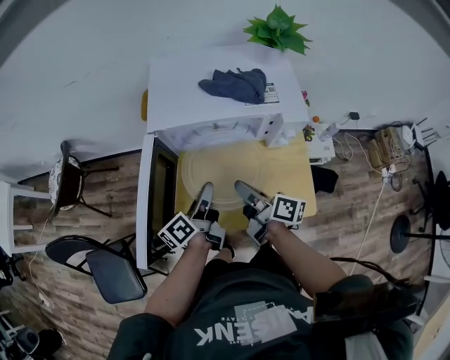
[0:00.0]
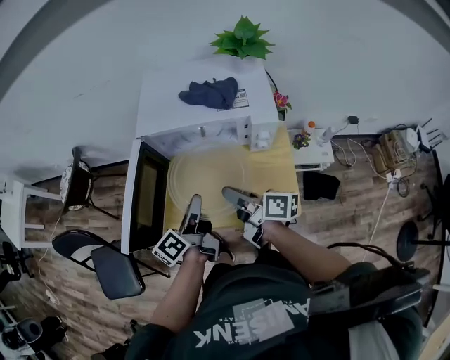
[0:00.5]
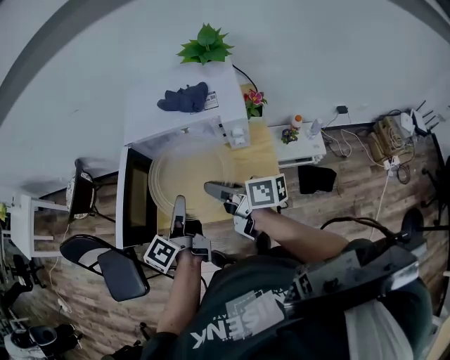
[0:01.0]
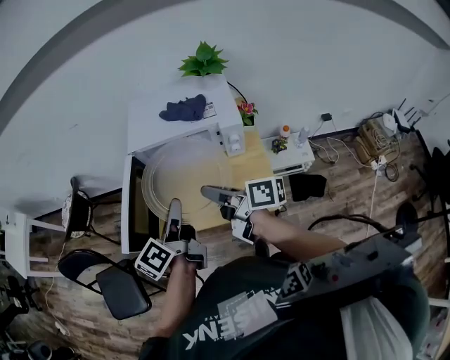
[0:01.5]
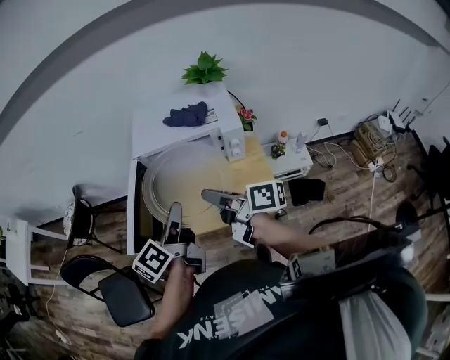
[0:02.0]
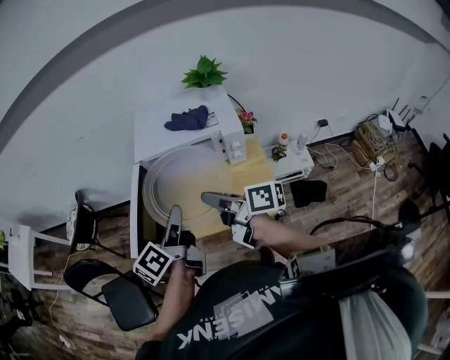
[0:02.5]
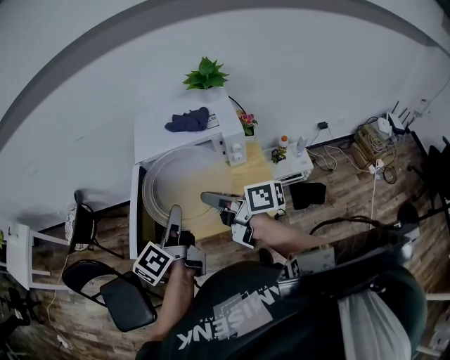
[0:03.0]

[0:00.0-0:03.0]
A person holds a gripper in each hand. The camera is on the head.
0:00.0 to 0:01.5: The grippers both shift upward and backward by some 20 cm.
0:01.5 to 0:03.0: There are only small adjustments of the grippers.

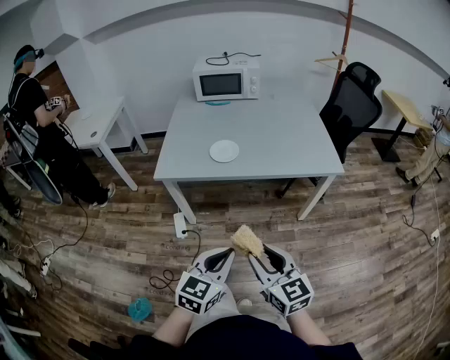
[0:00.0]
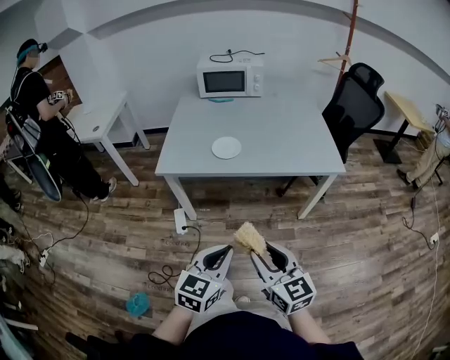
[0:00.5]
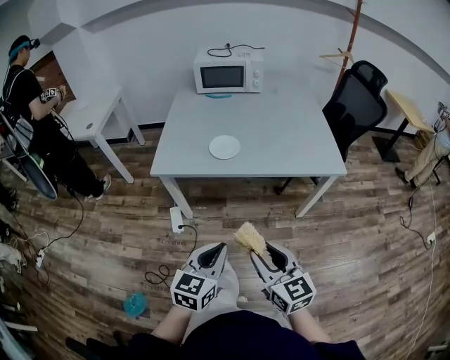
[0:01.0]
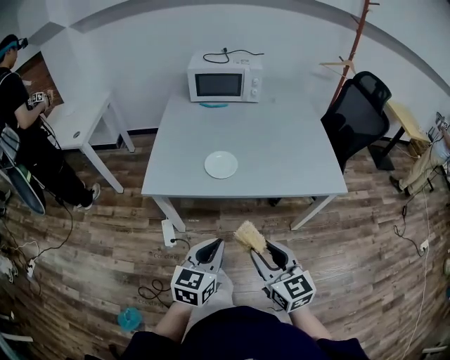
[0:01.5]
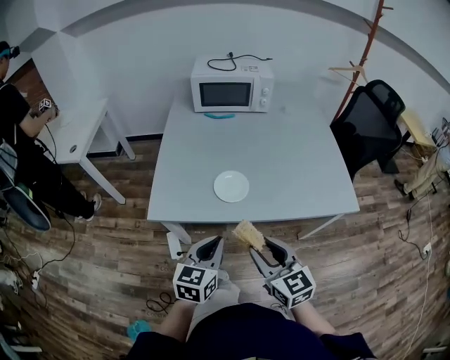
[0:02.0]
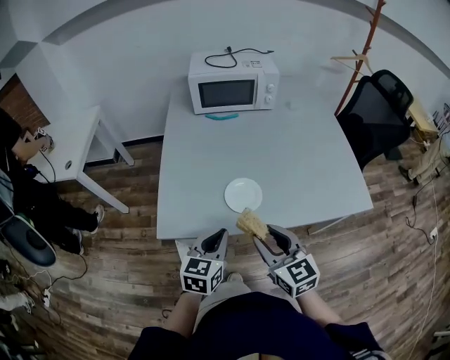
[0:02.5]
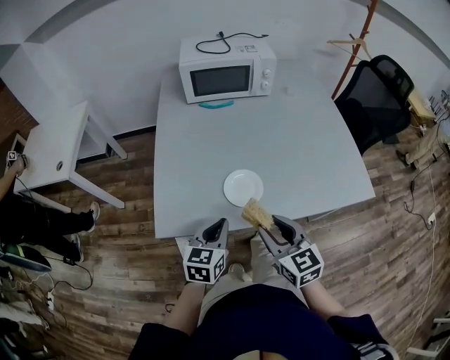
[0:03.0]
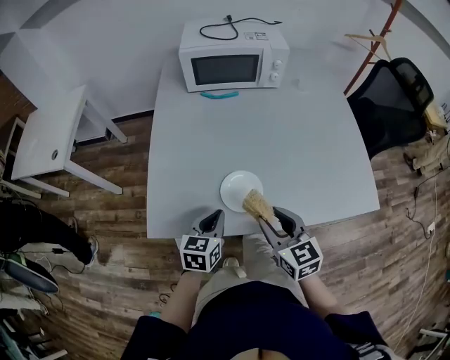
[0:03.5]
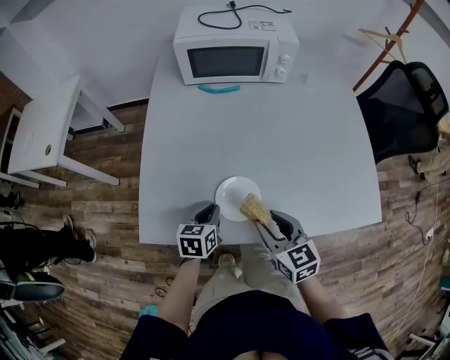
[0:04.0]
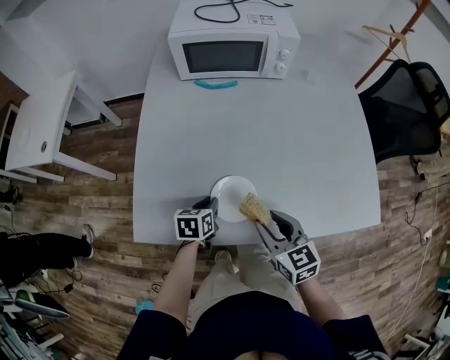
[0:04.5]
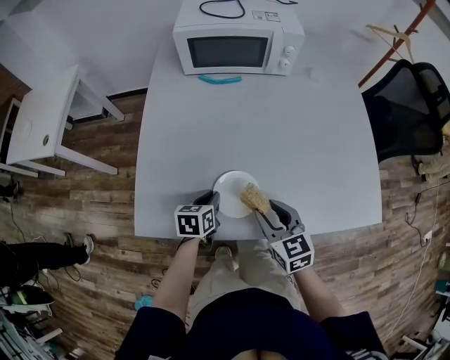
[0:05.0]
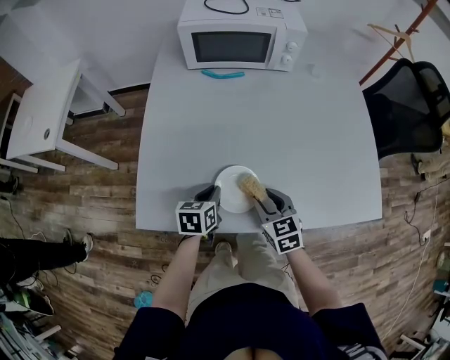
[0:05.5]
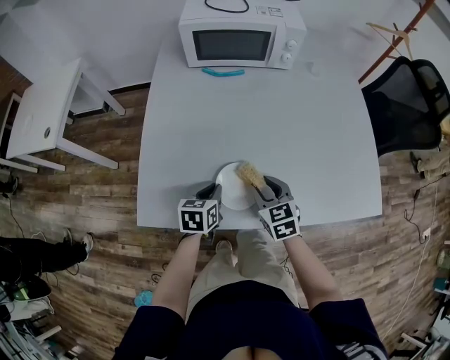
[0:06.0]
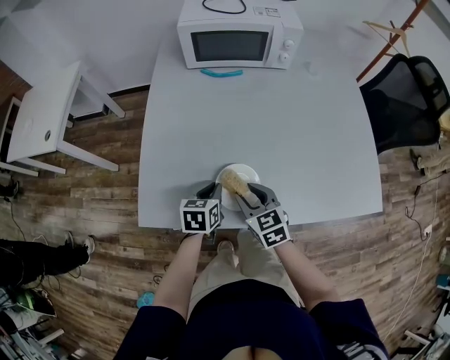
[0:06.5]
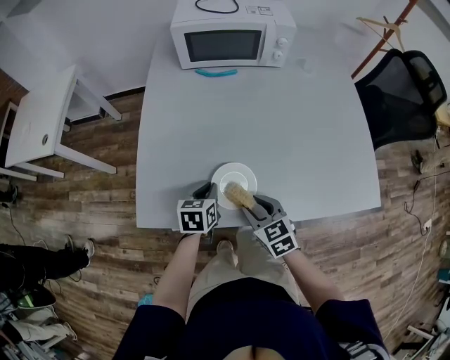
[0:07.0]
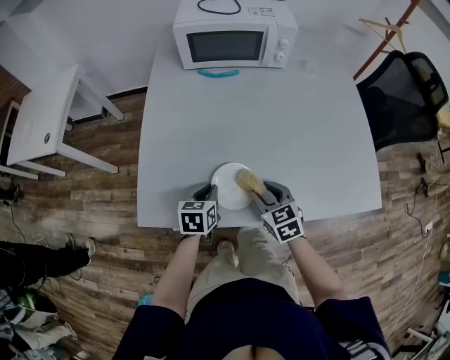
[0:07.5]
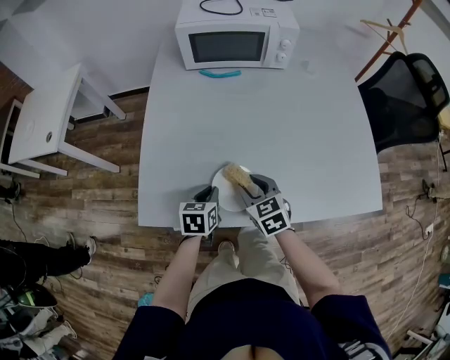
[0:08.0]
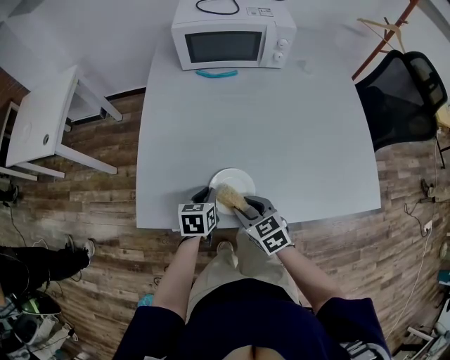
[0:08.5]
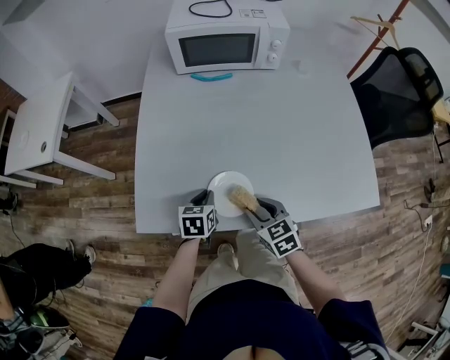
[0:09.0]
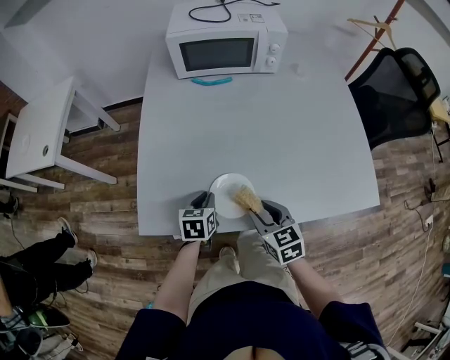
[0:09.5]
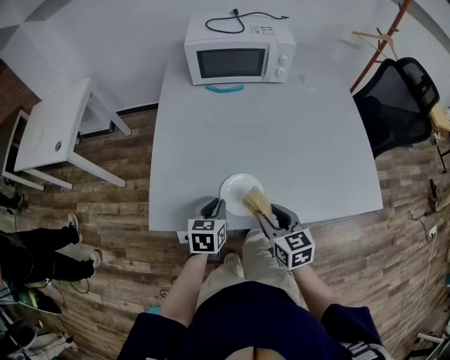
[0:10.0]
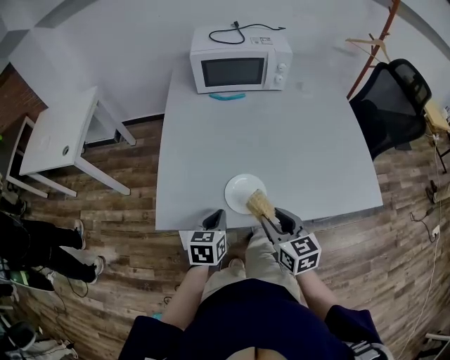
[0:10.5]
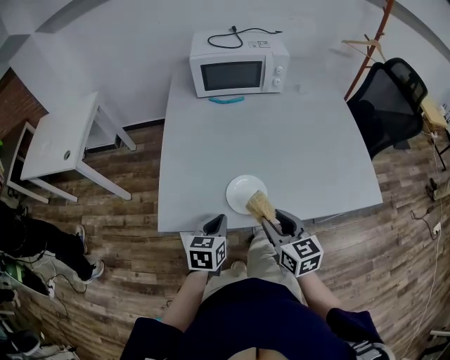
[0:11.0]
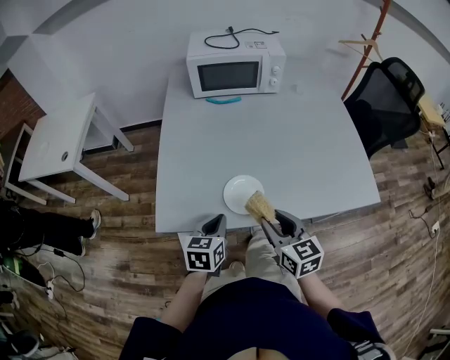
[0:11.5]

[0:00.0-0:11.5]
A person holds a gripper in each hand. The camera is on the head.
0:00.0 to 0:02.0: The grippers both shift forward by roughly 25 cm.
0:02.0 to 0:04.0: The two grippers go approximately 25 cm forward and downward. The left gripper turns by about 20 degrees.
0:04.0 to 0:06.0: The right gripper heads downward and forward, covering approximately 10 cm.
0:07.5 to 0:09.5: The right gripper shifts by some 5 cm.
0:09.5 to 0:11.5: The right gripper is displaced upward and backward by roughly 10 cm; the left gripper shifts some 15 cm backward and upward.

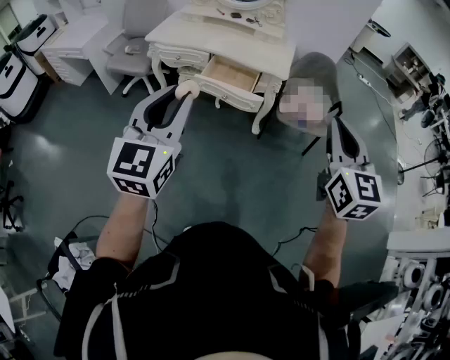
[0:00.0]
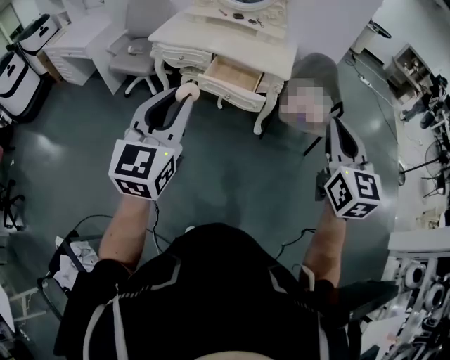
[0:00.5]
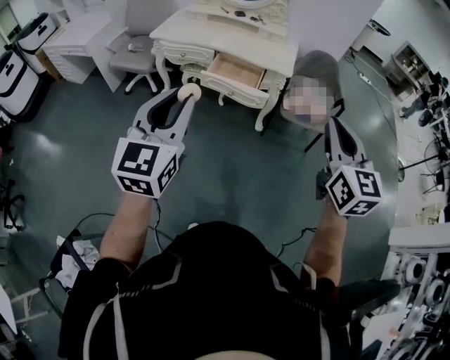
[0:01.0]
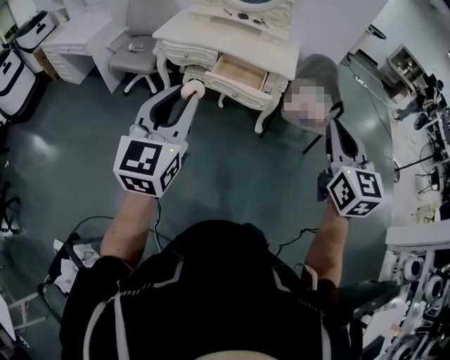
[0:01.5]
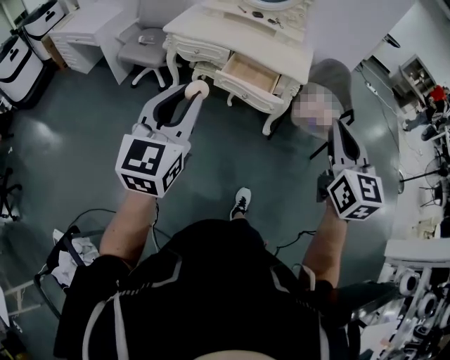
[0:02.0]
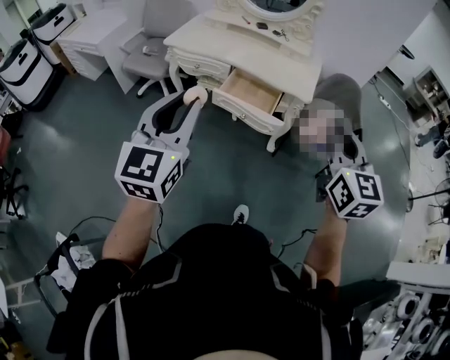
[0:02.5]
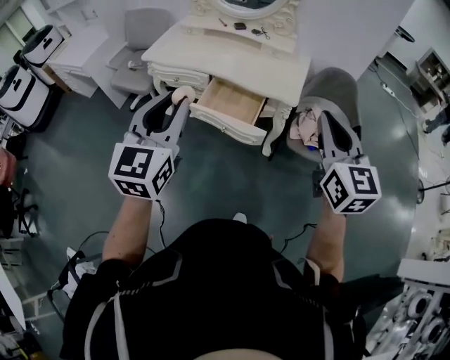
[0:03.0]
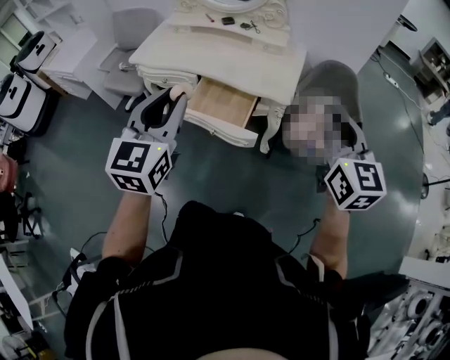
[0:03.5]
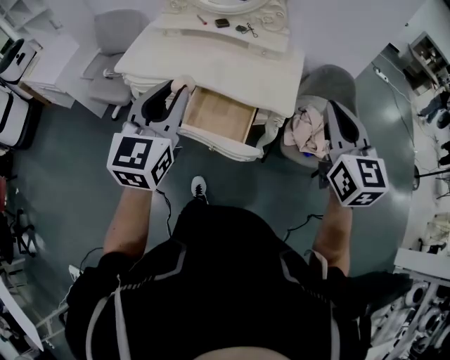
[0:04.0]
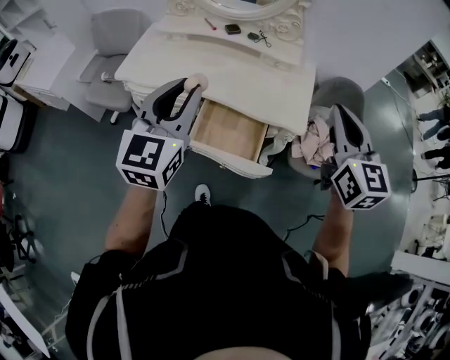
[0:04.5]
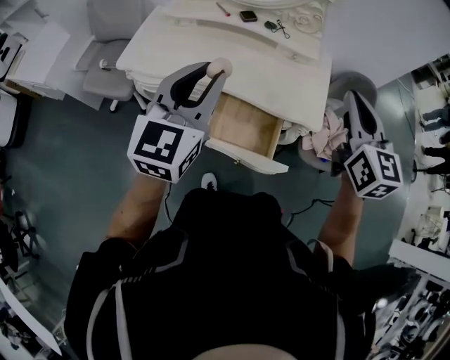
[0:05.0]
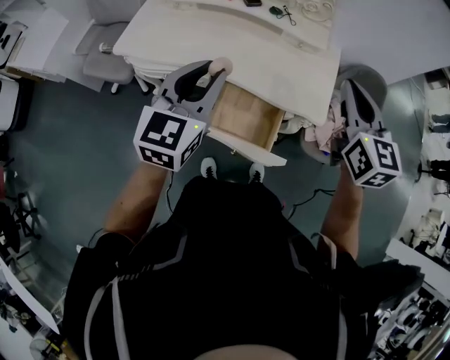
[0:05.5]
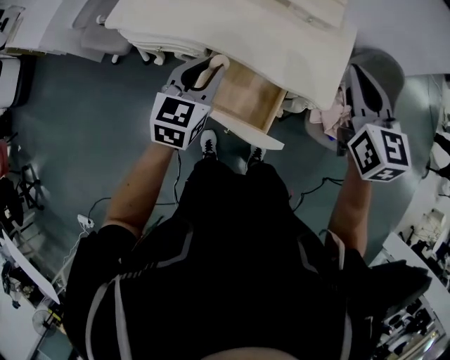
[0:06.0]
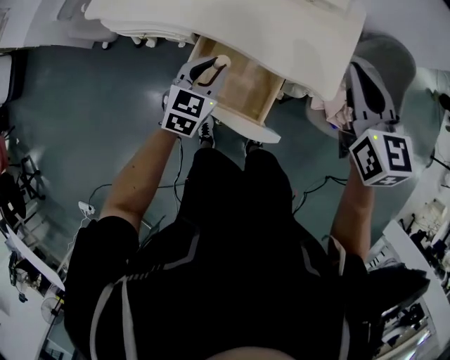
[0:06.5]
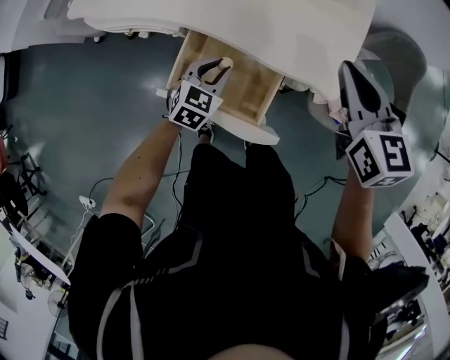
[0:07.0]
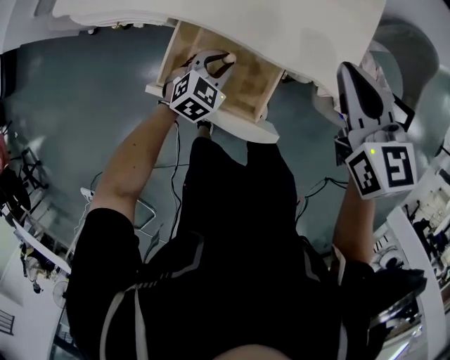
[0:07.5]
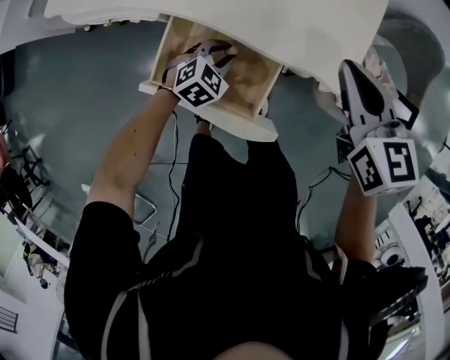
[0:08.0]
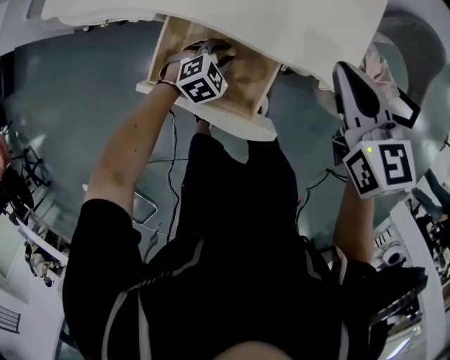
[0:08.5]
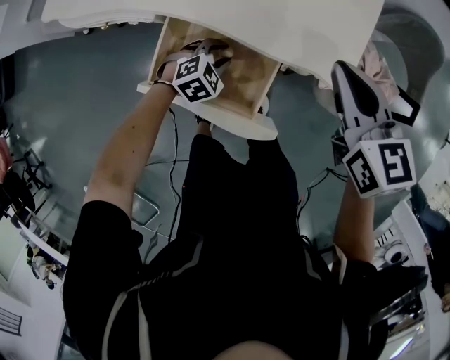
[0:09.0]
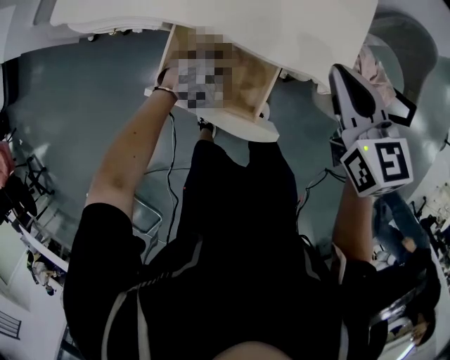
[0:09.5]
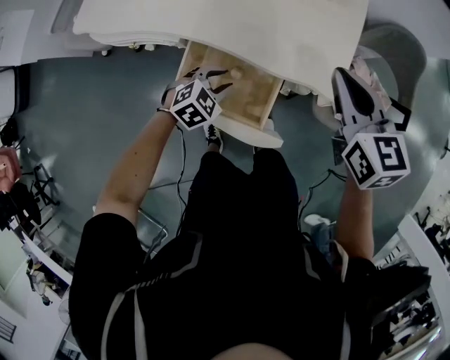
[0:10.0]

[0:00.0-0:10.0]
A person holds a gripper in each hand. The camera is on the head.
0:00.0 to 0:02.0: Both grippers move to the left, about 10 cm.
0:02.0 to 0:04.0: The pair of grippers is taken forward, some 40 cm.
0:04.0 to 0:06.0: The left gripper moves downward and forward, about 30 cm, and changes its angle by some 20 degrees. Meanwhile the right gripper goes some 25 cm forward and downward.
0:06.0 to 0:08.0: The right gripper goes roughly 20 cm downward. Meanwhile the left gripper moves downward, about 30 cm, and tilts its fingers some 30 degrees downward.
0:08.0 to 0:10.0: The two grippers go about 5 cm upward.

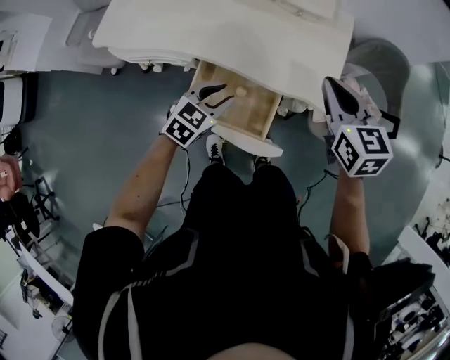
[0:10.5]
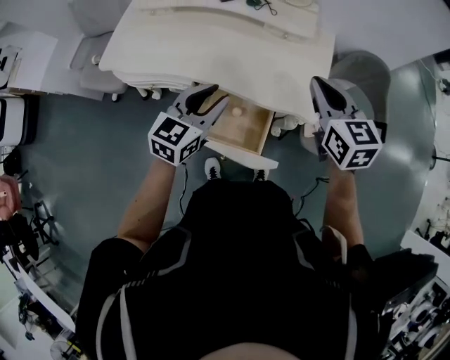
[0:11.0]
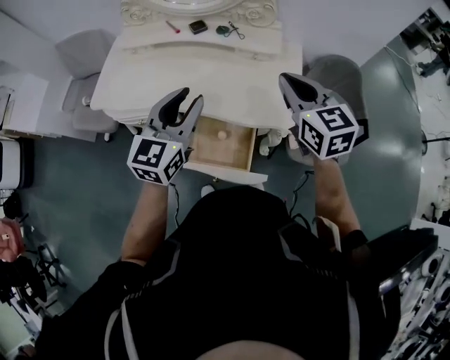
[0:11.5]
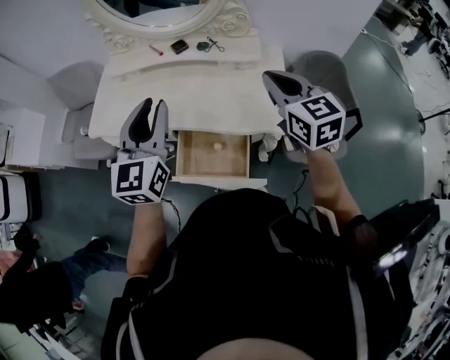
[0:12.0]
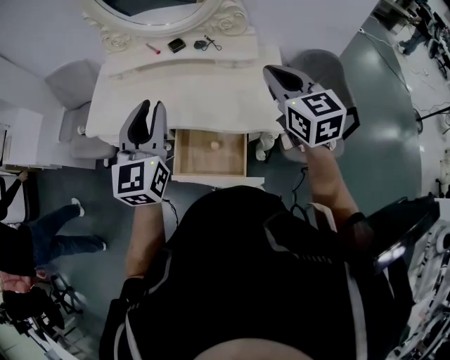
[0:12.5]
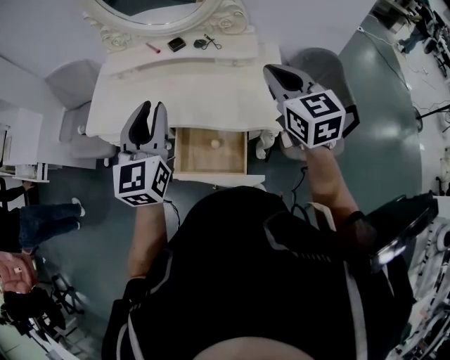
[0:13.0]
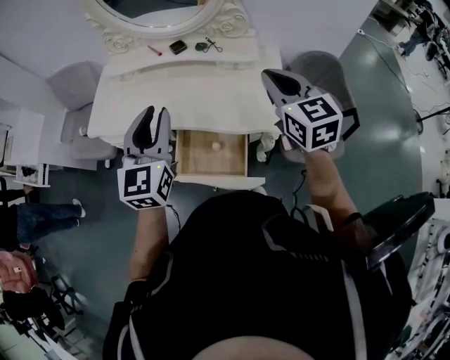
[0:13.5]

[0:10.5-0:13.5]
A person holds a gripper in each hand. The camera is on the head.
0:10.5 to 0:12.0: The left gripper goes about 30 cm upward, and tips its fingers upward by roughly 40 degrees. The right gripper moves upward, some 15 cm.
0:12.0 to 0:13.5: There are only small adjustments of the grippers.
